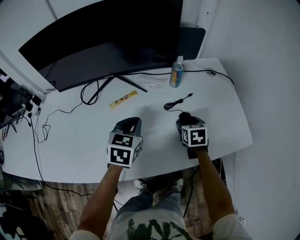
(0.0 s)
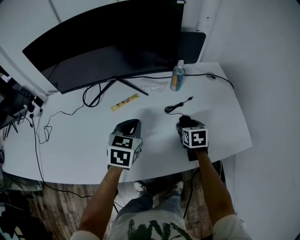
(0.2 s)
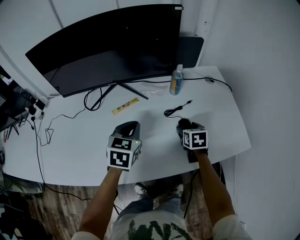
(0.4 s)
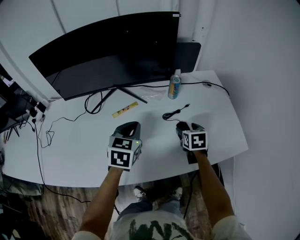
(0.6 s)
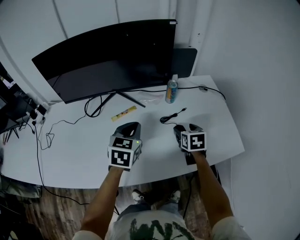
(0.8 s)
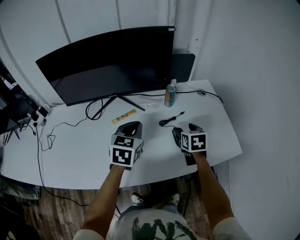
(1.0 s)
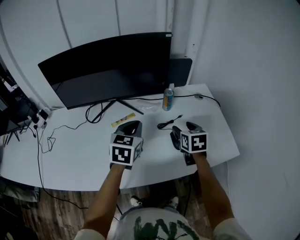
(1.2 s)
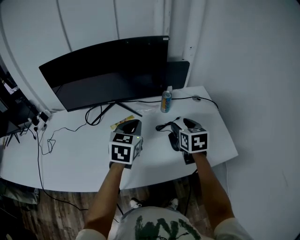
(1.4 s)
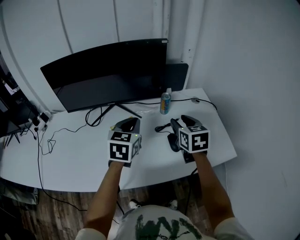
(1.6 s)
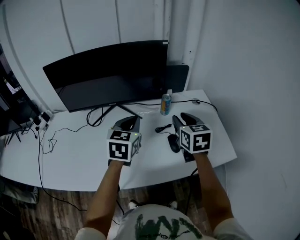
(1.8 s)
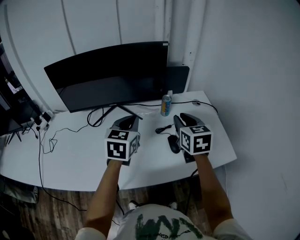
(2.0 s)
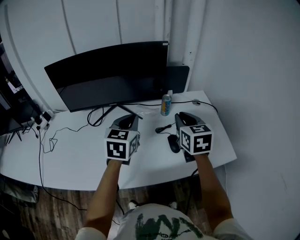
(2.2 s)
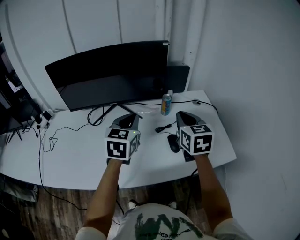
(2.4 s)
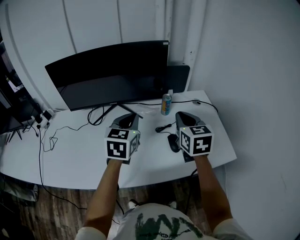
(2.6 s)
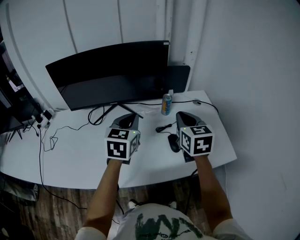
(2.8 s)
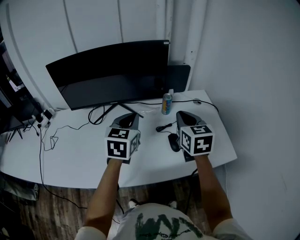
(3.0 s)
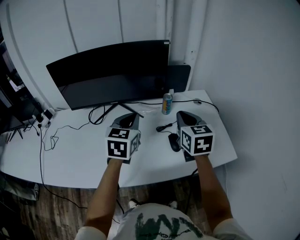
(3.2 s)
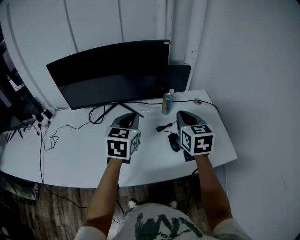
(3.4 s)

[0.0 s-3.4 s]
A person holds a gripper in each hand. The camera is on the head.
0.0 to 1.6 s: The left gripper shifts roughly 15 cm upward. Meanwhile the right gripper goes about 25 cm upward, and swivels some 20 degrees.
1.6 to 3.4 s: The right gripper moves upward, roughly 5 cm, and closes its fingers.

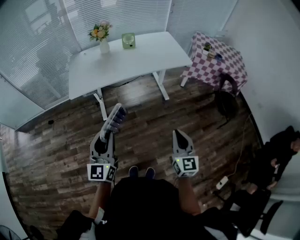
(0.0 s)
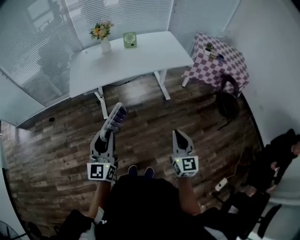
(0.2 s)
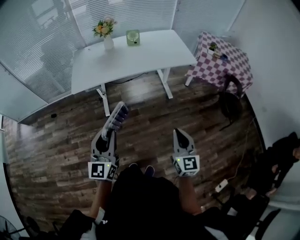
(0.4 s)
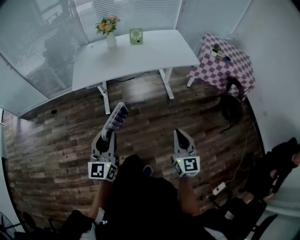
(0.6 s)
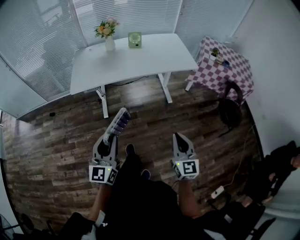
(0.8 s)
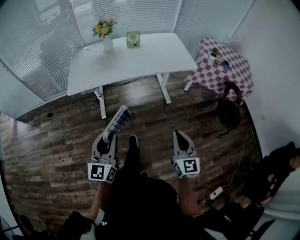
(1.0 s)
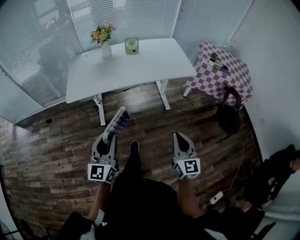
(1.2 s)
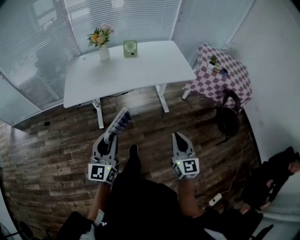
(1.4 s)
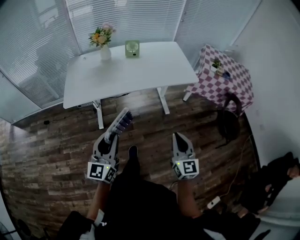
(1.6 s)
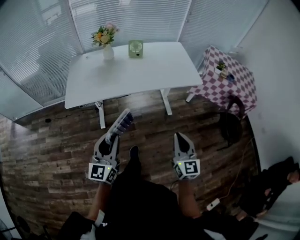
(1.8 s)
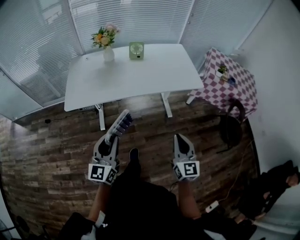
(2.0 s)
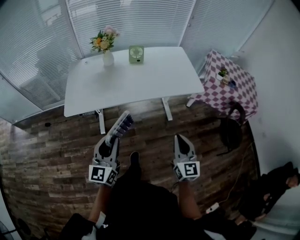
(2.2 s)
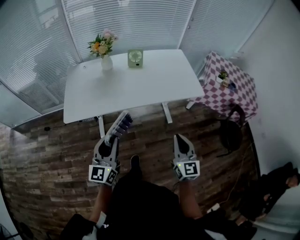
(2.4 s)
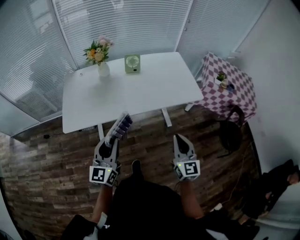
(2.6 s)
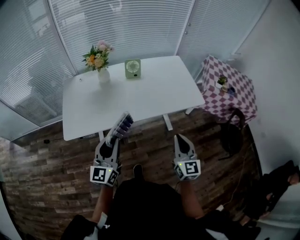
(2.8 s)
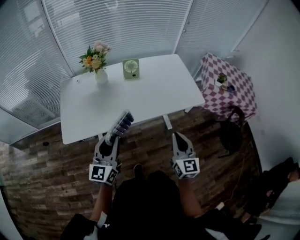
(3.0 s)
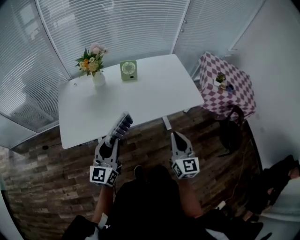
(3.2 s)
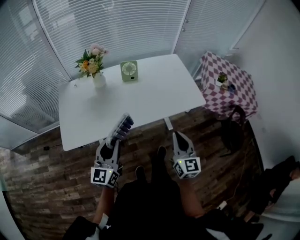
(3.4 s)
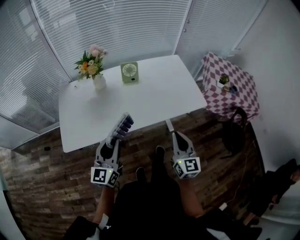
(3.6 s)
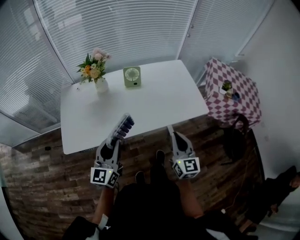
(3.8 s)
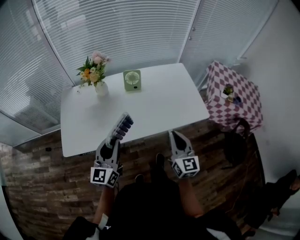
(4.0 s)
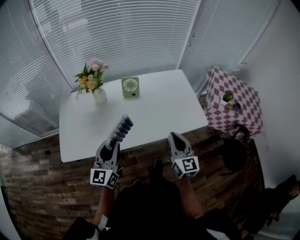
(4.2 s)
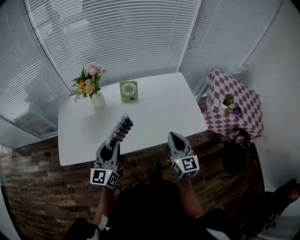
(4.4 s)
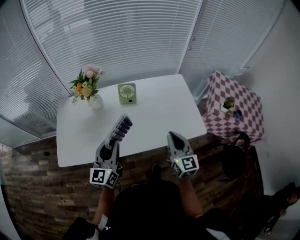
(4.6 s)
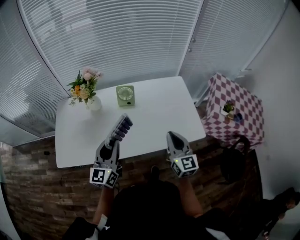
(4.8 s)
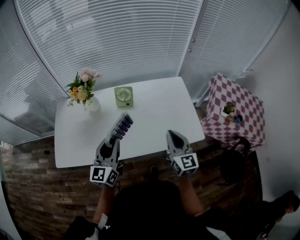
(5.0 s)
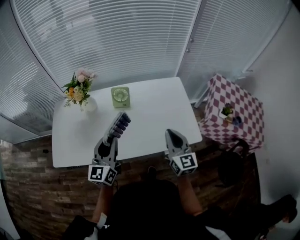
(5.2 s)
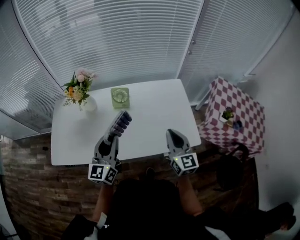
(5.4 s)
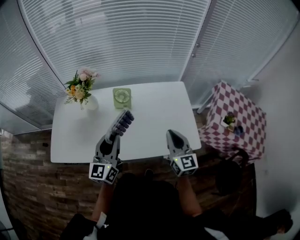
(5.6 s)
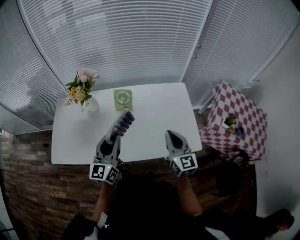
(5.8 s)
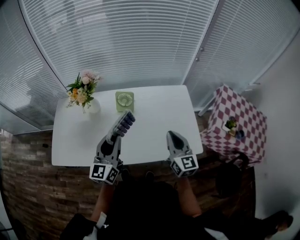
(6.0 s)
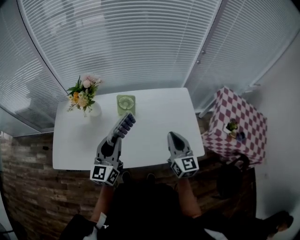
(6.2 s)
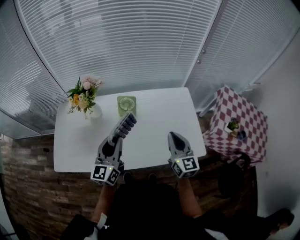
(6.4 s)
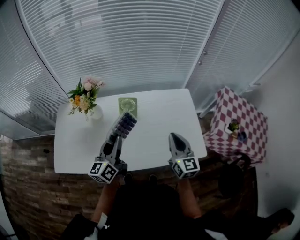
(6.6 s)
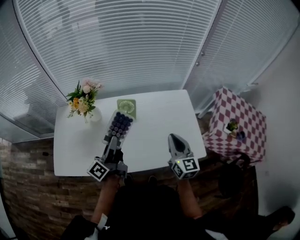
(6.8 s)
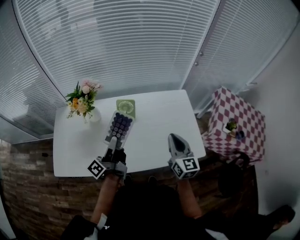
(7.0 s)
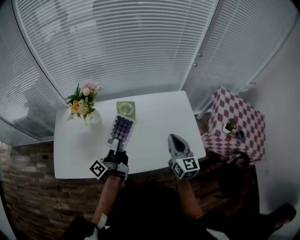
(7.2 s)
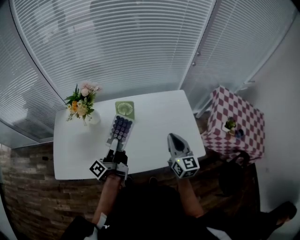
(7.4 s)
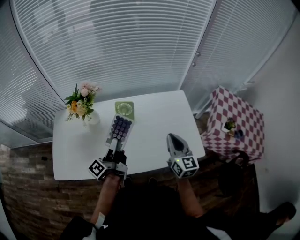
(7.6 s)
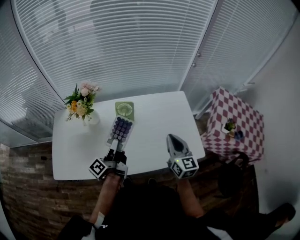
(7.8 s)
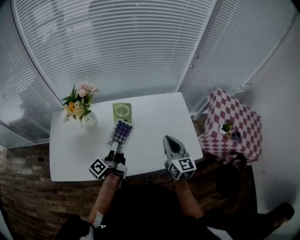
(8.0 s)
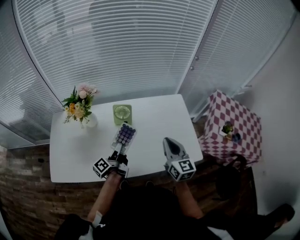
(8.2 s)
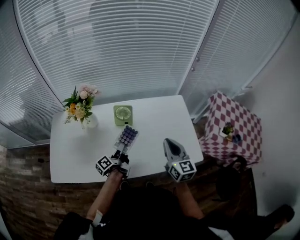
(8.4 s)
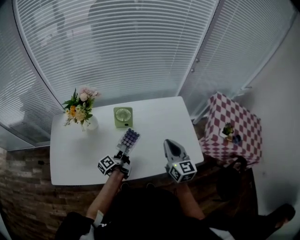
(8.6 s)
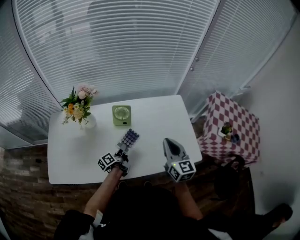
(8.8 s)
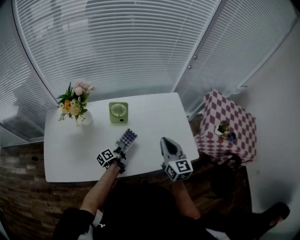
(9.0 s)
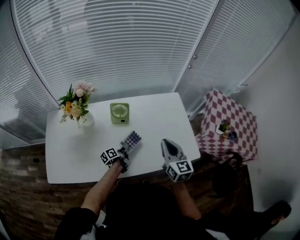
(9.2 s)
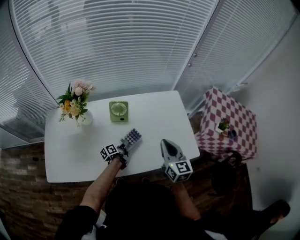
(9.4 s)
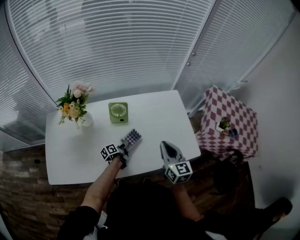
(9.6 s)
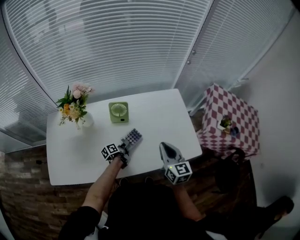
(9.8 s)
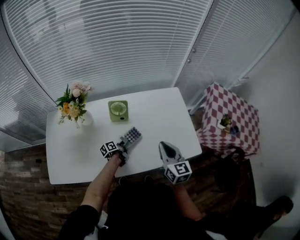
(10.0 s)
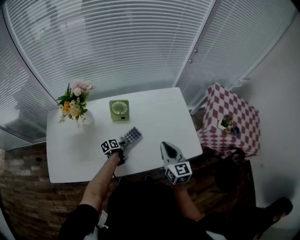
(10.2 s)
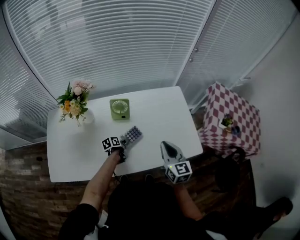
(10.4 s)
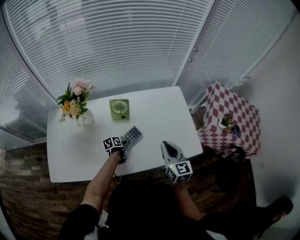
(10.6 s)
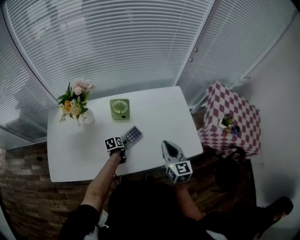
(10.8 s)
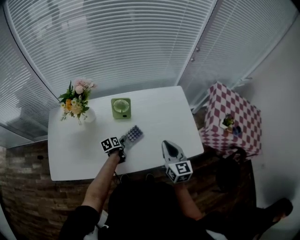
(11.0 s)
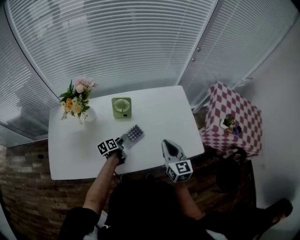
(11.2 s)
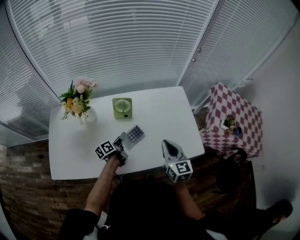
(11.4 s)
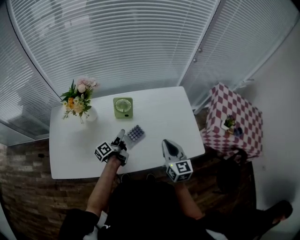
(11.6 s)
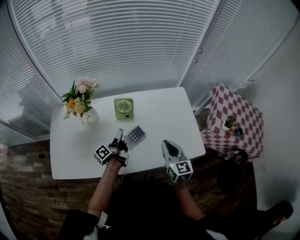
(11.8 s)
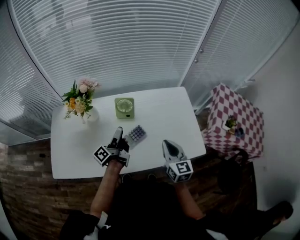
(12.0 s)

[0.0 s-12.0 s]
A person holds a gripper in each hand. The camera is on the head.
0.0 to 1.6 s: The left gripper moves forward and to the right, approximately 15 cm, while the right gripper heads forward, covering some 15 cm.
1.6 to 3.0 s: Both grippers move forward, some 25 cm.
3.0 to 4.4 s: The grippers both shift forward by some 15 cm.
4.4 to 6.0 s: Both grippers travel together forward and to the right, approximately 15 cm.
6.0 to 7.6 s: The left gripper ends up approximately 5 cm from where it was, and rotates around the line of its fingers by some 70 degrees, counterclockwise from behind.
7.6 to 9.0 s: The left gripper shifts about 25 cm downward, and turns by roughly 30 degrees.
9.0 to 10.4 s: The left gripper moves downward, roughly 5 cm, and changes its angle by roughly 30 degrees. The right gripper changes place by roughly 5 cm.
10.4 to 12.0 s: The left gripper goes about 25 cm upward, and points its fingers some 50 degrees further upward.

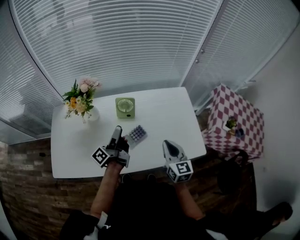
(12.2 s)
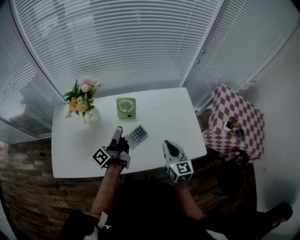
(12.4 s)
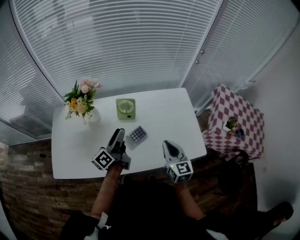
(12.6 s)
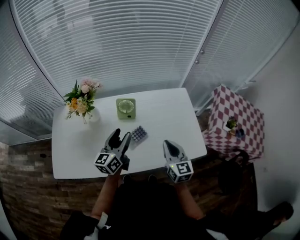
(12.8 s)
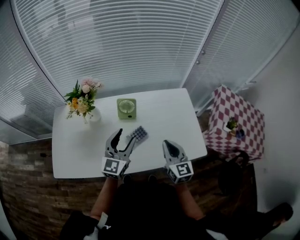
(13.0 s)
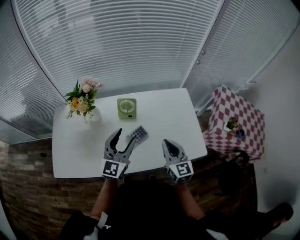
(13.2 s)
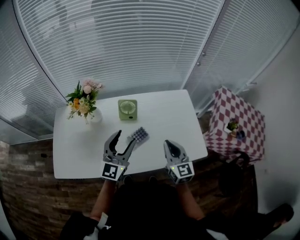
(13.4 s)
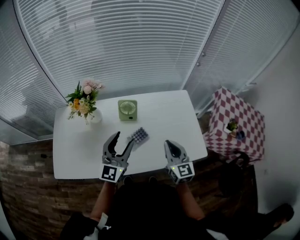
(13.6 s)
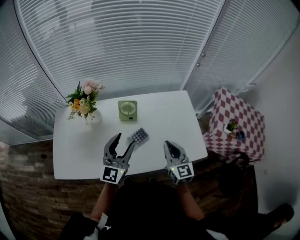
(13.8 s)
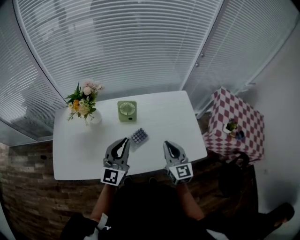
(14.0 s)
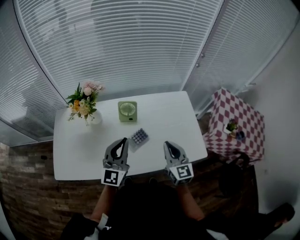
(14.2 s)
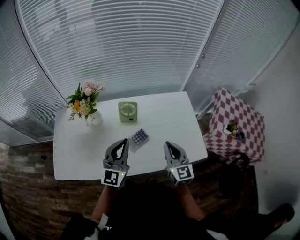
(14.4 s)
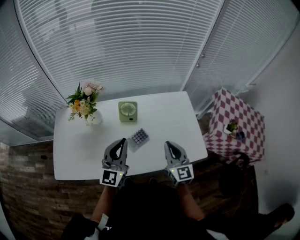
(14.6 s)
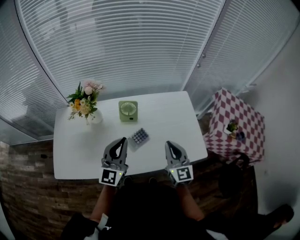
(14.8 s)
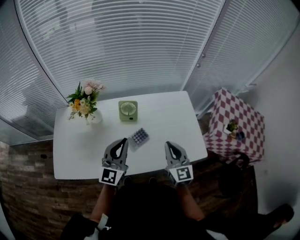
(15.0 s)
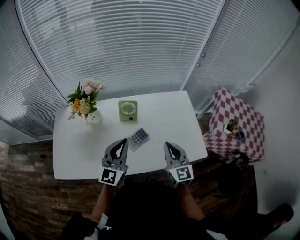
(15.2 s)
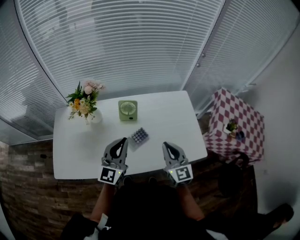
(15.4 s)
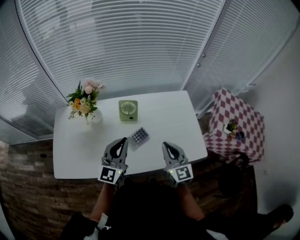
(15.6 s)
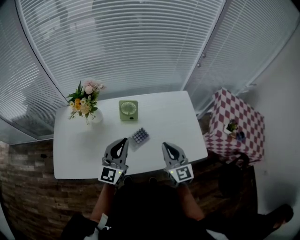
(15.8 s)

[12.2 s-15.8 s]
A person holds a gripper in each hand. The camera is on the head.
12.2 to 14.0 s: The left gripper travels upward and backward by roughly 10 cm, twists about 90 degrees clockwise, seen from behind, and closes.
14.0 to 15.8 s: The grippers stay close to where they were, moving slightly.

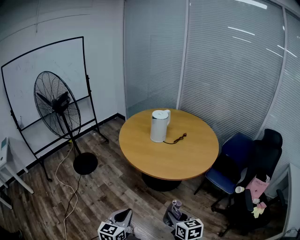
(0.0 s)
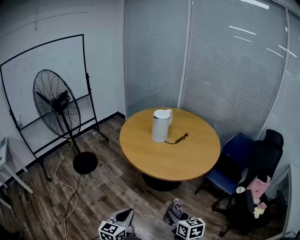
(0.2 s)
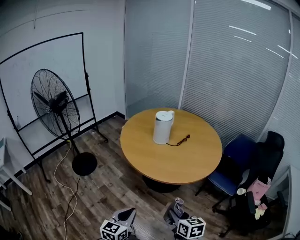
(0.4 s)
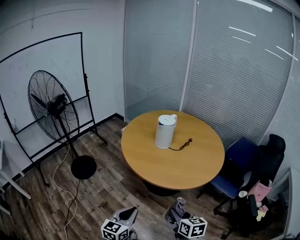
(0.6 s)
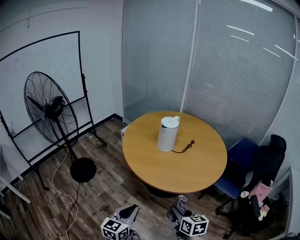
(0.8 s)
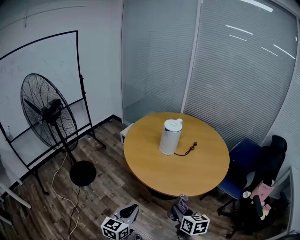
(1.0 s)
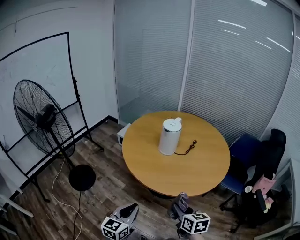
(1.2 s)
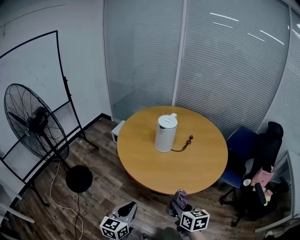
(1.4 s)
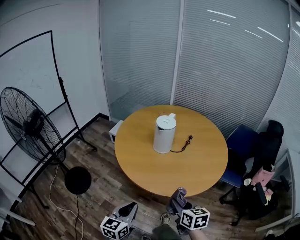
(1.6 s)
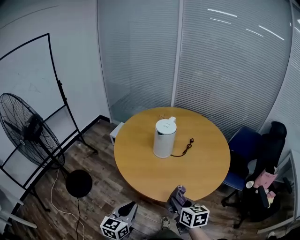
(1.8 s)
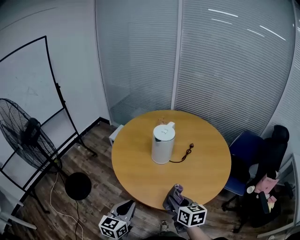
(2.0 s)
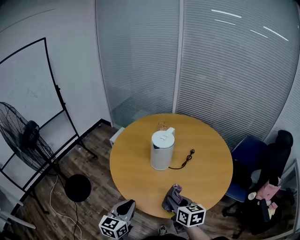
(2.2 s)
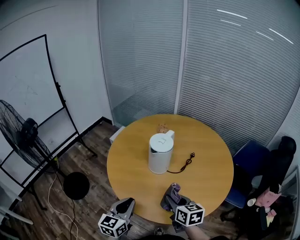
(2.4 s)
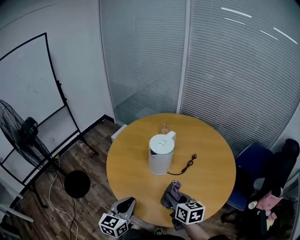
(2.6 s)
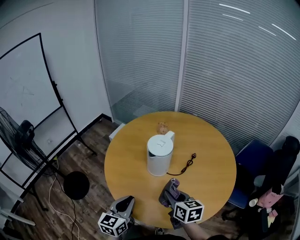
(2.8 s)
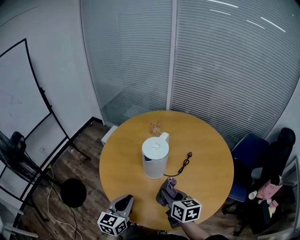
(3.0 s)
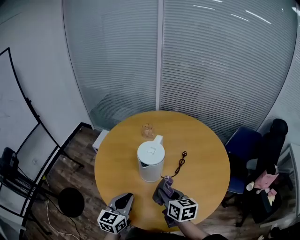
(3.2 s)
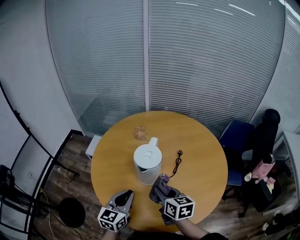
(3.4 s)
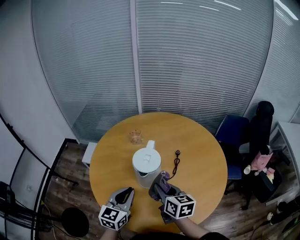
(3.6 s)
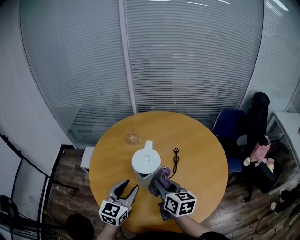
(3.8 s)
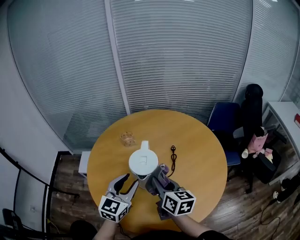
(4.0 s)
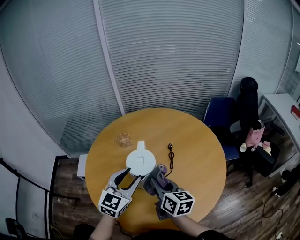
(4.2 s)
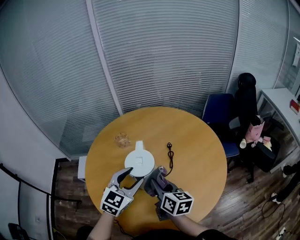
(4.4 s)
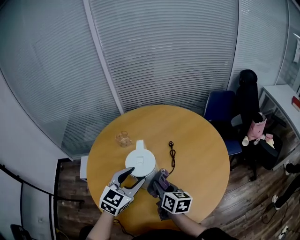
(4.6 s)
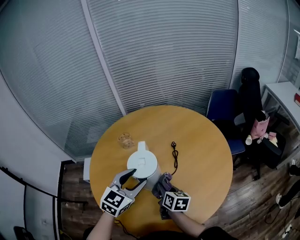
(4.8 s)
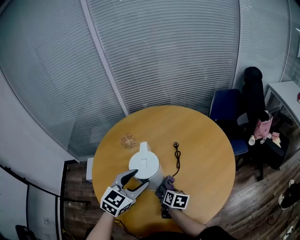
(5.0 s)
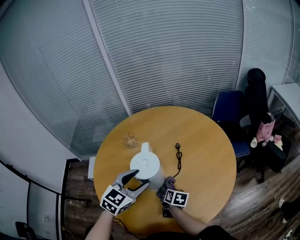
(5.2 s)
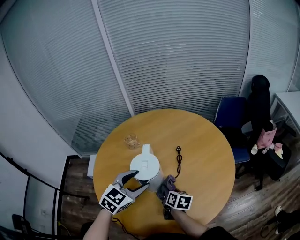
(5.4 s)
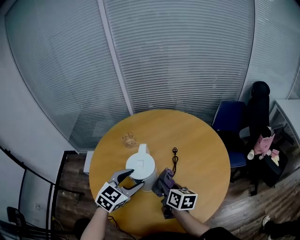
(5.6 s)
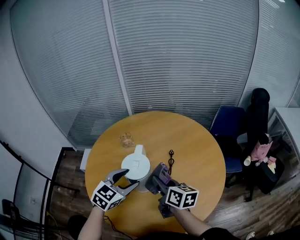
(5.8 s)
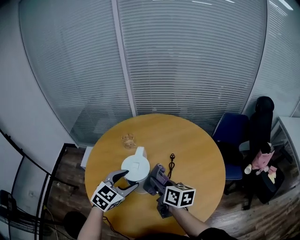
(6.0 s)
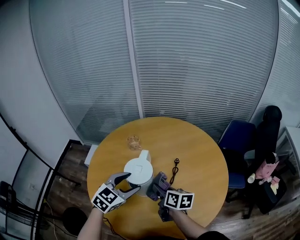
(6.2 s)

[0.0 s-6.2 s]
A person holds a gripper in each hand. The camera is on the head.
0.0 to 1.6 s: The two grippers go about 30 cm forward and to the left.
1.6 to 3.2 s: Both grippers move forward, approximately 30 cm.
3.2 to 4.6 s: The right gripper moves approximately 10 cm, and changes its angle by about 30 degrees, while the left gripper changes place by approximately 15 cm, swivels some 50 degrees, and opens.
4.6 to 6.2 s: The right gripper goes up and down, some 20 cm each way, reversing 2 times, and rotates some 20 degrees.
